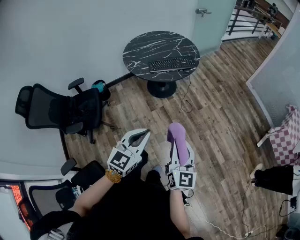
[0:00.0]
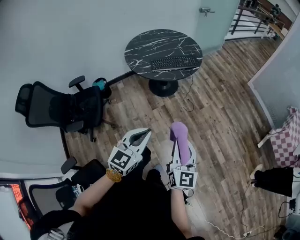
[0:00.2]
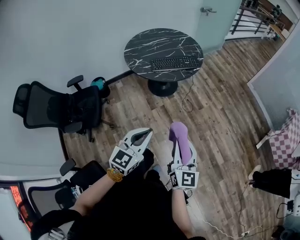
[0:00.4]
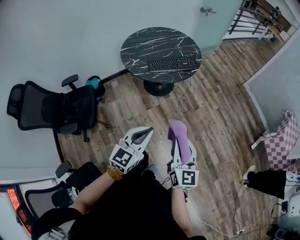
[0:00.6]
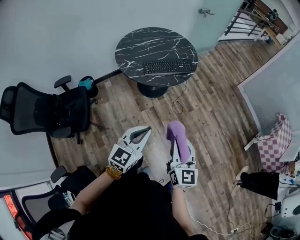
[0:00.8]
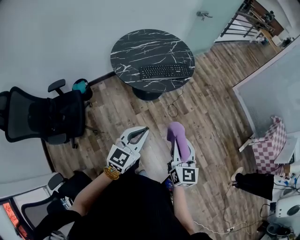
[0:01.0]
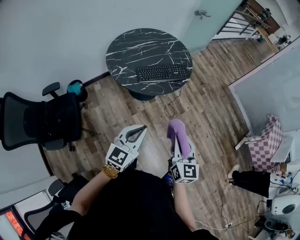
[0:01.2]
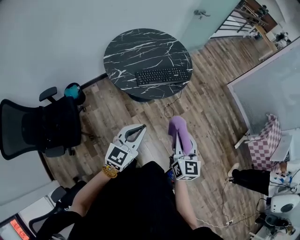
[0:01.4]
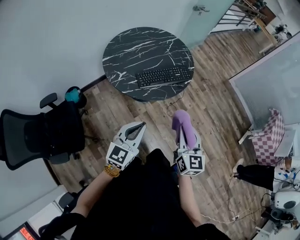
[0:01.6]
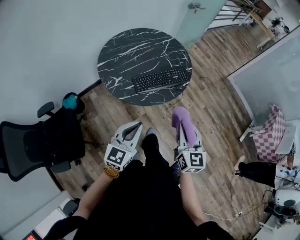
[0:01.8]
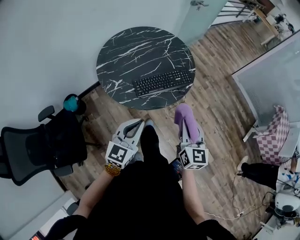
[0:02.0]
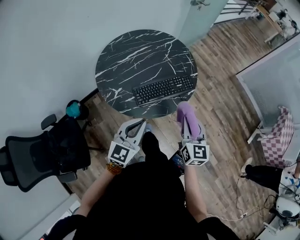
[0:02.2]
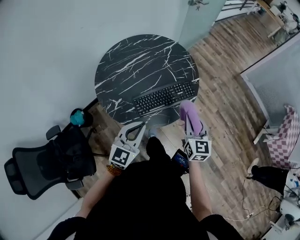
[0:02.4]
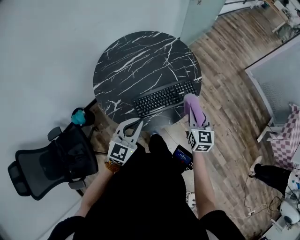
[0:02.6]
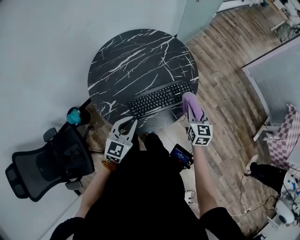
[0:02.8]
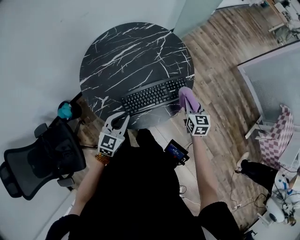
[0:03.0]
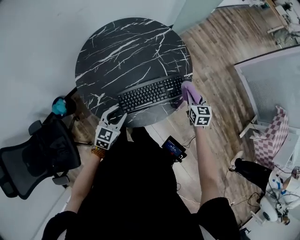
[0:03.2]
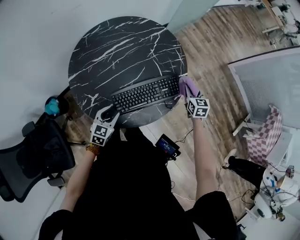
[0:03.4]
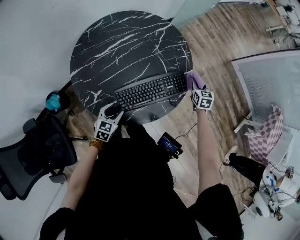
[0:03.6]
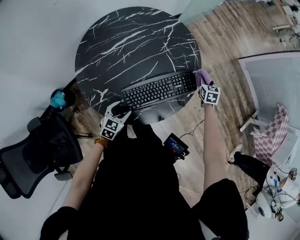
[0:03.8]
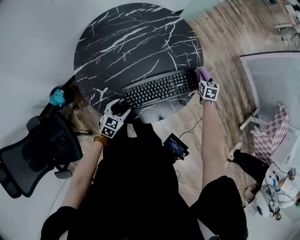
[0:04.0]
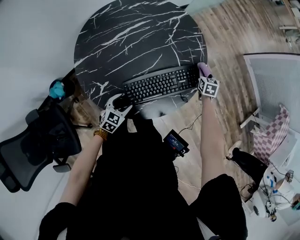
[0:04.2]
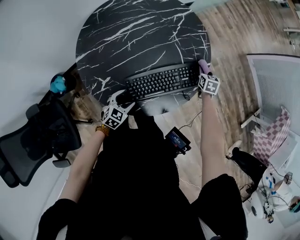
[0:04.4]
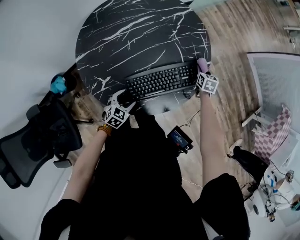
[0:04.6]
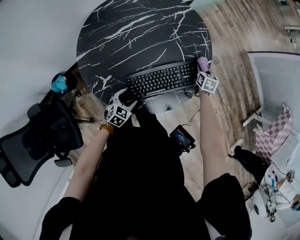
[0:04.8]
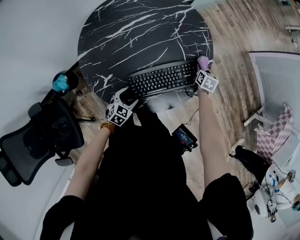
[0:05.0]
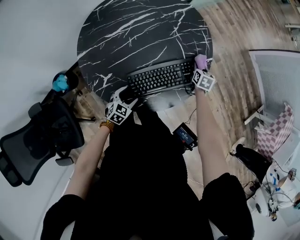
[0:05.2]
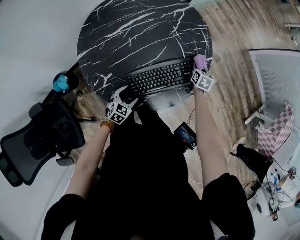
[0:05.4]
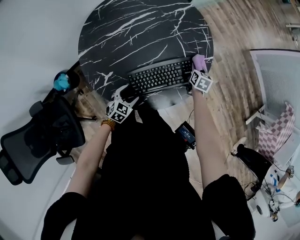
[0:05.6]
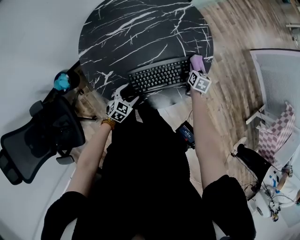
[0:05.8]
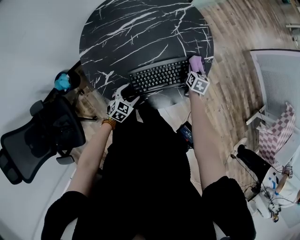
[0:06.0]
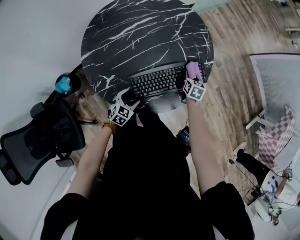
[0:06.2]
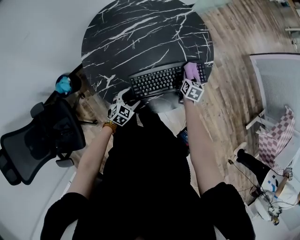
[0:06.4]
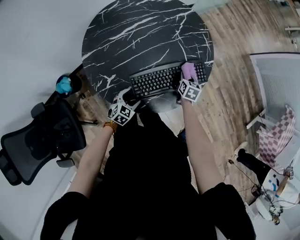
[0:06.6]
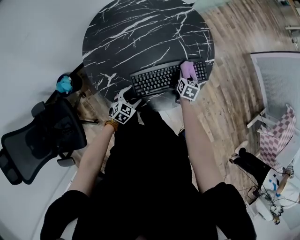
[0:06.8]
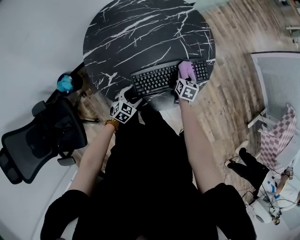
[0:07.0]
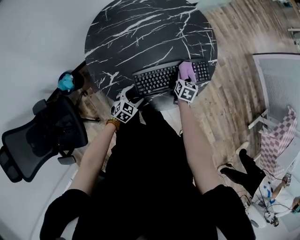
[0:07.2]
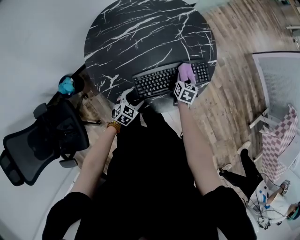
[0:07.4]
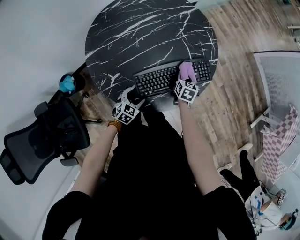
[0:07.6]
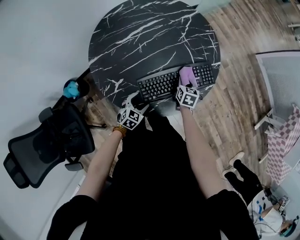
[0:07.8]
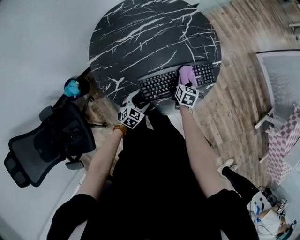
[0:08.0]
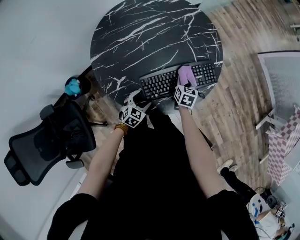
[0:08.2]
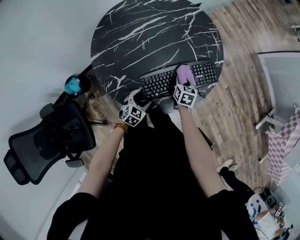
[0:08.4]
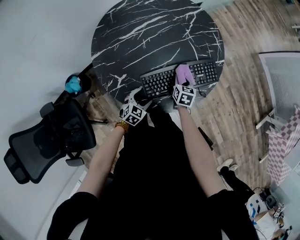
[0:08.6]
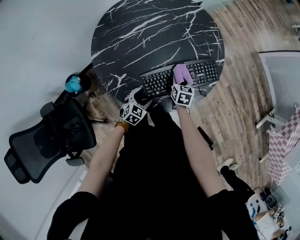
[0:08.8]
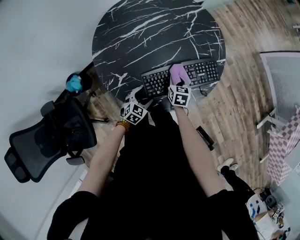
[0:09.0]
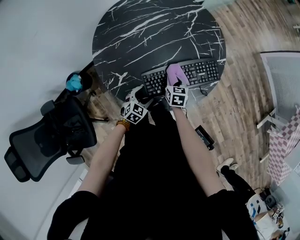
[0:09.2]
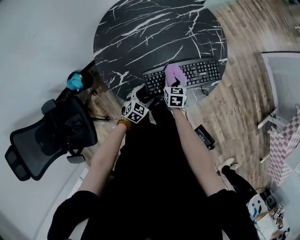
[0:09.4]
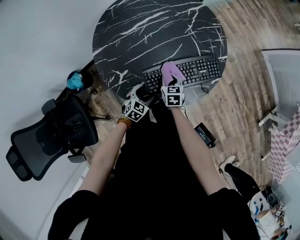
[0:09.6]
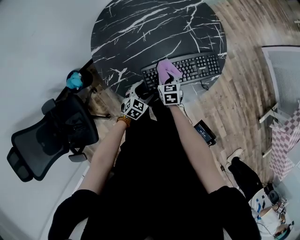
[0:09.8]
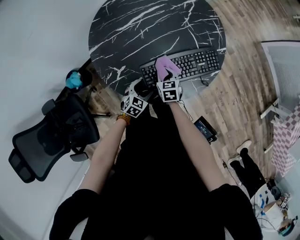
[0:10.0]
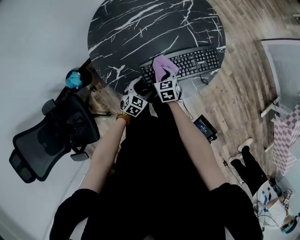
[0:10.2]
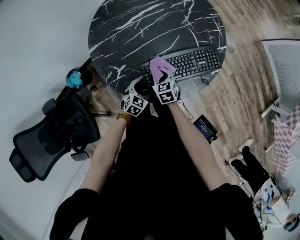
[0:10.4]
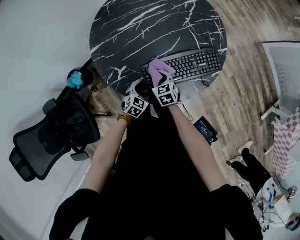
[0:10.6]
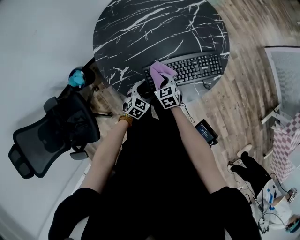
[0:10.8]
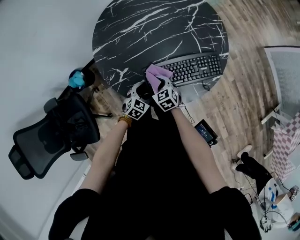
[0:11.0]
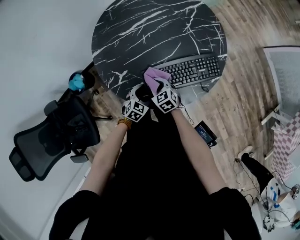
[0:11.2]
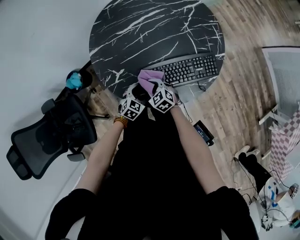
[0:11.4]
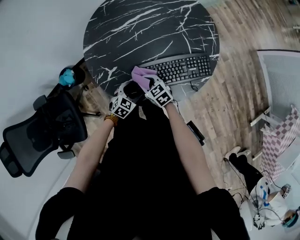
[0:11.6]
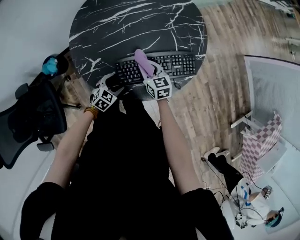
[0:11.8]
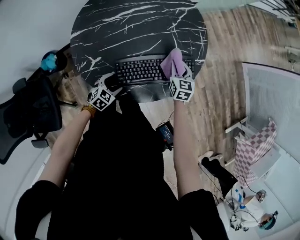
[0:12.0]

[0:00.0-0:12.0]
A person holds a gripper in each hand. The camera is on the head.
0:00.0 to 0:01.6: Both grippers travel together forward and to the left, some 30 cm.
0:01.6 to 0:03.0: The two grippers go some 40 cm forward and downward. The right gripper changes its angle by approximately 20 degrees.
0:03.0 to 0:04.4: The left gripper travels downward by approximately 20 cm, turns by some 20 degrees, and opens up. Meanwhile the right gripper moves downward and forward, about 25 cm, and rotates roughly 20 degrees.
0:04.4 to 0:06.0: The right gripper heads backward and to the left, covering about 10 cm.
0:06.0 to 0:07.6: The right gripper is displaced to the left and backward by roughly 10 cm.
0:07.6 to 0:09.0: The right gripper travels to the left and backward by some 10 cm.
0:09.0 to 0:10.4: The right gripper travels to the left and backward by roughly 10 cm, and turns by approximately 20 degrees.
0:10.4 to 0:12.0: The right gripper goes about 25 cm to the right and forward.

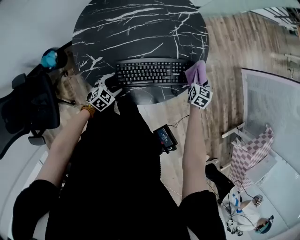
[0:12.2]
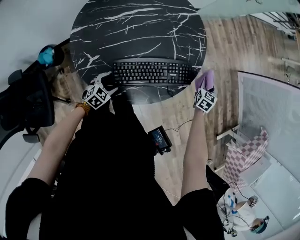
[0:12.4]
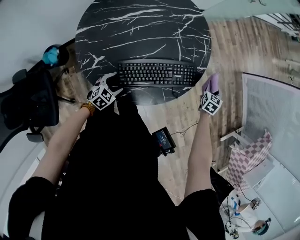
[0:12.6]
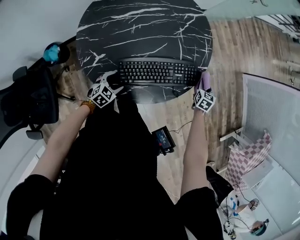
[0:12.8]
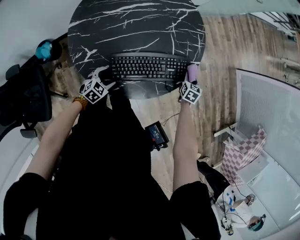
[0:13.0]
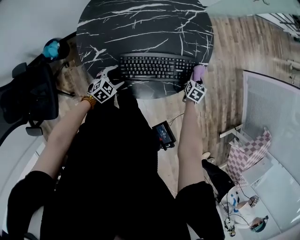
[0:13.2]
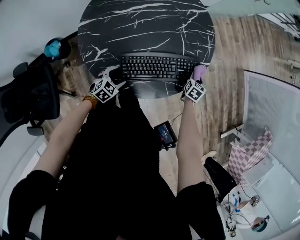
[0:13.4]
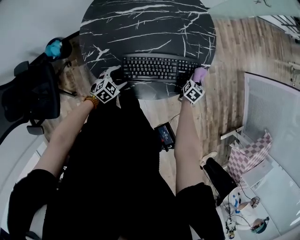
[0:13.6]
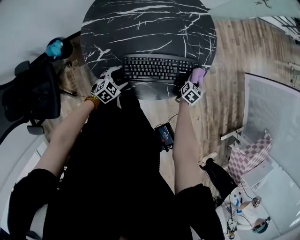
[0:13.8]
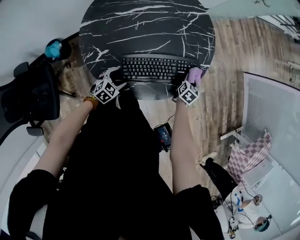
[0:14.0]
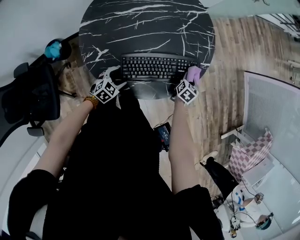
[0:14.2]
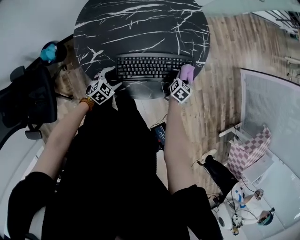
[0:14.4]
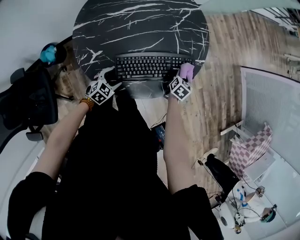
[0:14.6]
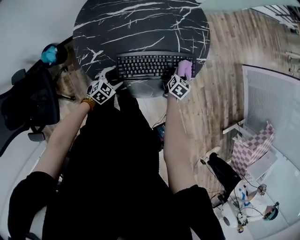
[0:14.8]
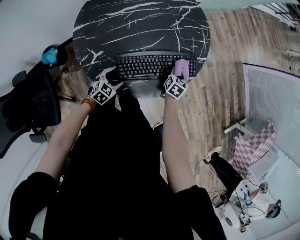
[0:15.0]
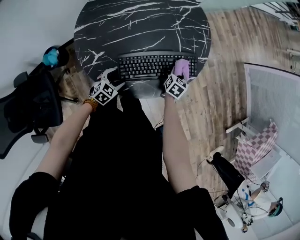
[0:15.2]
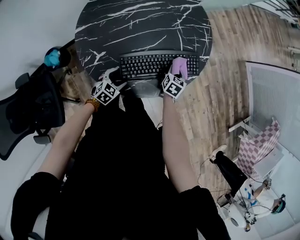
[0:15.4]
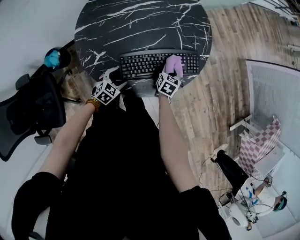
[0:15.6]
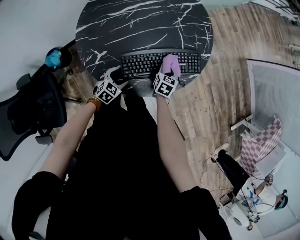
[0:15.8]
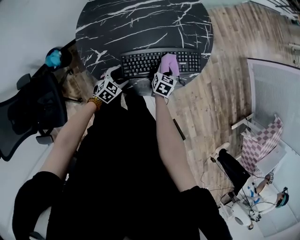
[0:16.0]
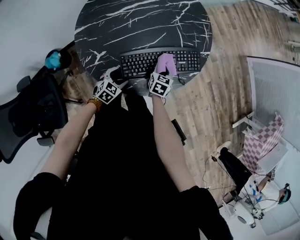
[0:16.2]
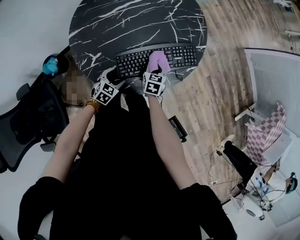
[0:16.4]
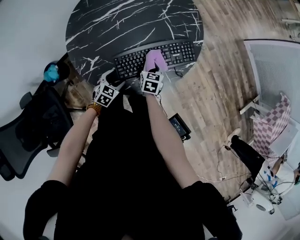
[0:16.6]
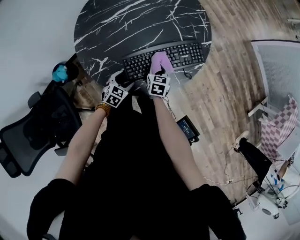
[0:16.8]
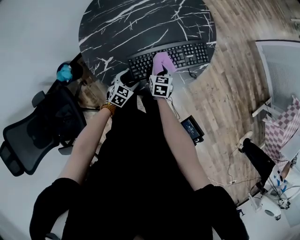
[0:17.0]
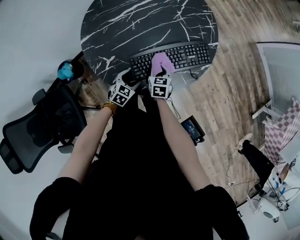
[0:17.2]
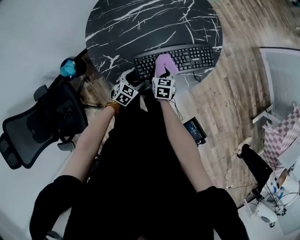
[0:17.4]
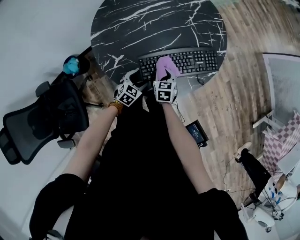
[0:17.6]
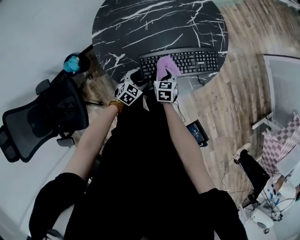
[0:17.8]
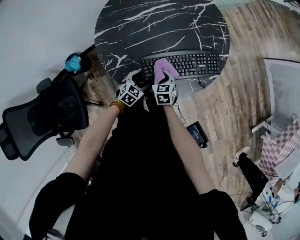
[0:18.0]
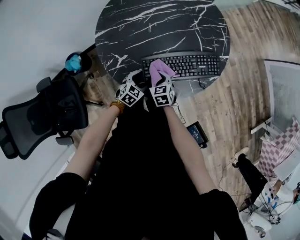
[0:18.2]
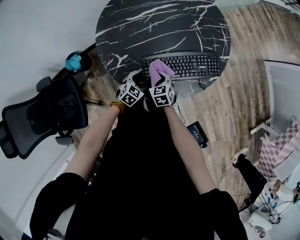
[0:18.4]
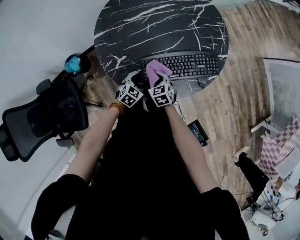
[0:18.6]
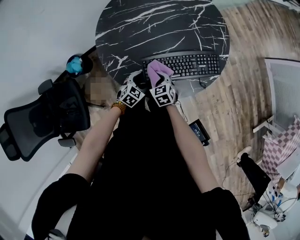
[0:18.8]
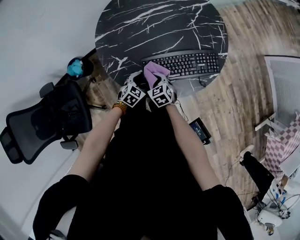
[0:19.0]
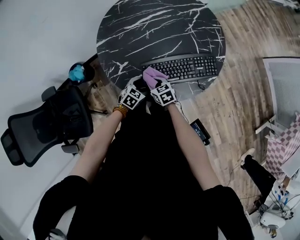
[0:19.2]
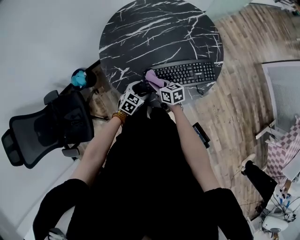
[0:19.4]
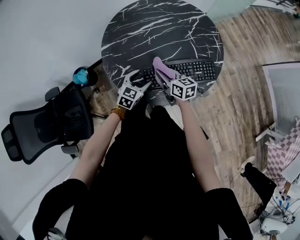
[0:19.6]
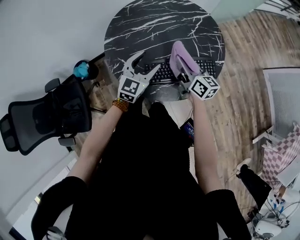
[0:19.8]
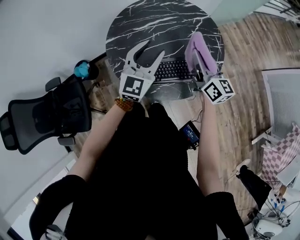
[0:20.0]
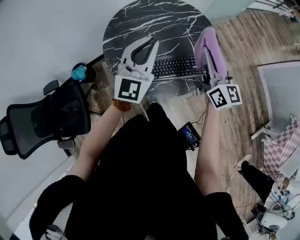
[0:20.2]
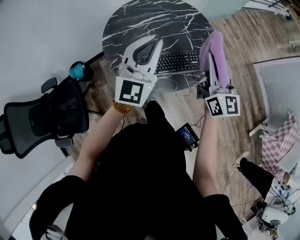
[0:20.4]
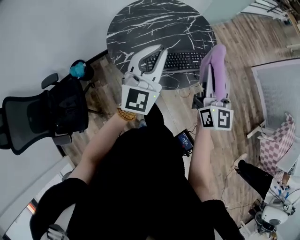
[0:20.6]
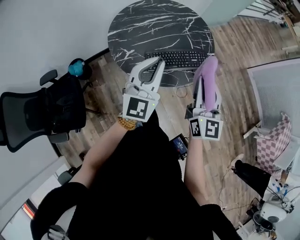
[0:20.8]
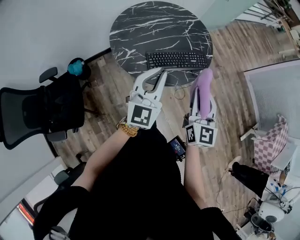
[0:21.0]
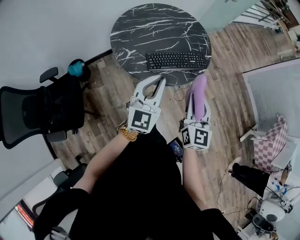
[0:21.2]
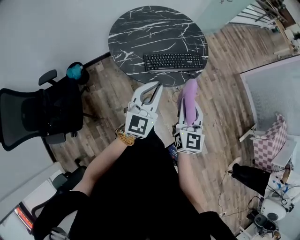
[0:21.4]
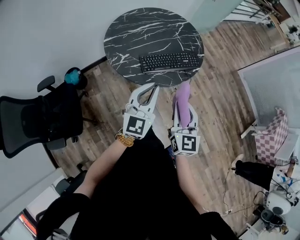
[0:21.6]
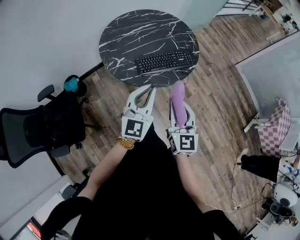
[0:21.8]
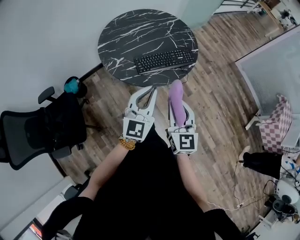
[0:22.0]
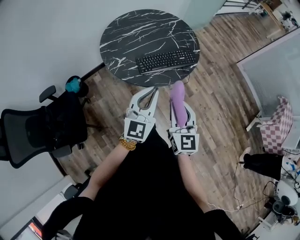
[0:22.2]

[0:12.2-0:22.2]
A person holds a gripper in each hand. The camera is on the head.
0:12.2 to 0:13.6: The right gripper goes about 10 cm downward, and moves some 10 cm to the right and comes back.
0:13.6 to 0:15.0: The right gripper travels to the left and backward by about 10 cm.
0:15.0 to 0:16.4: The right gripper heads to the left and backward, covering roughly 15 cm.
0:16.4 to 0:18.0: The right gripper travels to the left and backward by roughly 10 cm, and swivels roughly 20 degrees.
0:18.0 to 0:19.4: The right gripper moves about 5 cm, and rotates approximately 30 degrees.
0:19.4 to 0:20.8: The right gripper travels upward and backward by approximately 40 cm, and points its fingers about 30 degrees further upward. Meanwhile the left gripper goes approximately 40 cm upward, points its fingers roughly 50 degrees further upward, and closes.
0:20.8 to 0:22.2: Both grippers travel together backward and downward, roughly 15 cm.

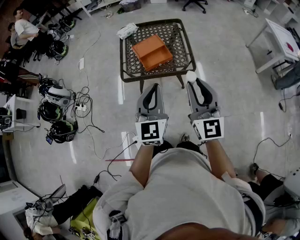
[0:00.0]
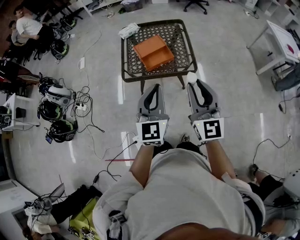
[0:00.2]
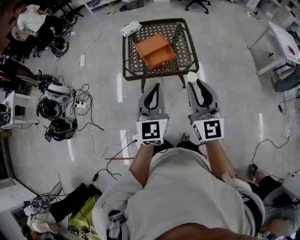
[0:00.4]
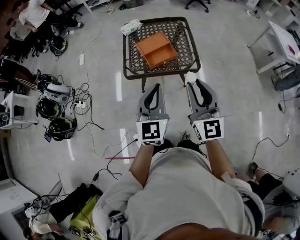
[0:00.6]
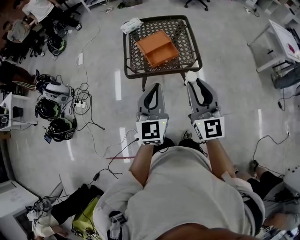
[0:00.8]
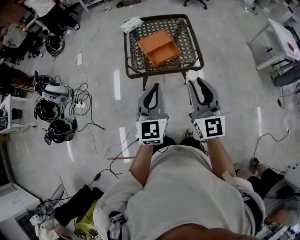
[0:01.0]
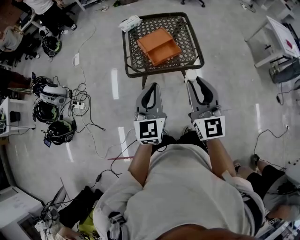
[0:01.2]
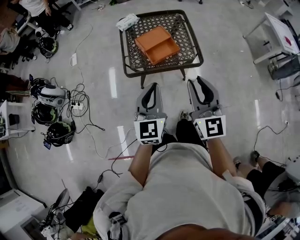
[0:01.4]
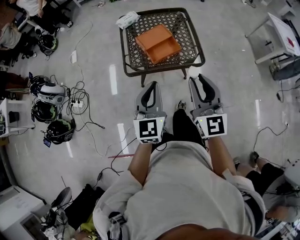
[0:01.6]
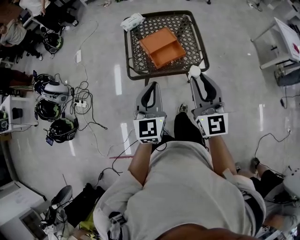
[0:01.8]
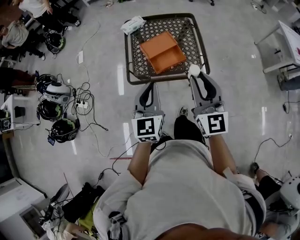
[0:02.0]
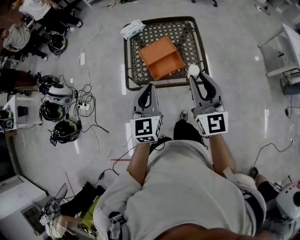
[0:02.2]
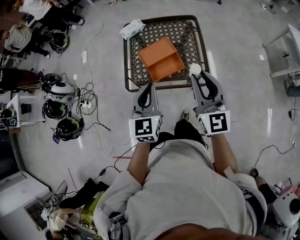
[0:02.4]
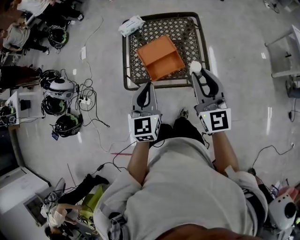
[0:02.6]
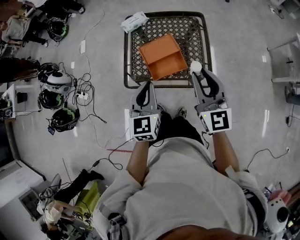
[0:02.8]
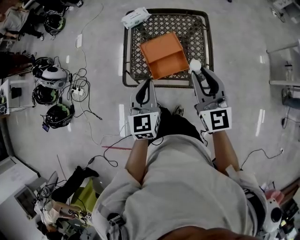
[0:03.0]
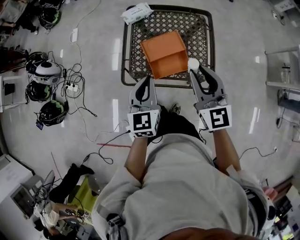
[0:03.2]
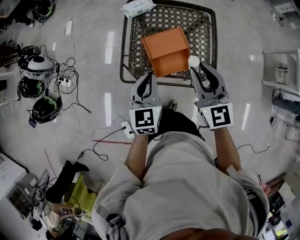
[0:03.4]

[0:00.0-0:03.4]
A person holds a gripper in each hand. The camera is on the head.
0:00.0 to 0:01.6: The grippers both shift to the left and forward by approximately 10 cm.
0:01.6 to 0:03.4: The right gripper is displaced forward by some 30 cm, and changes its angle by some 20 degrees, while the left gripper goes some 30 cm forward and downward.
